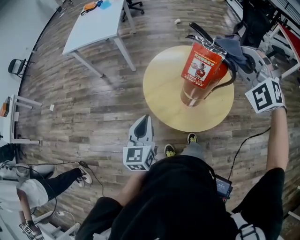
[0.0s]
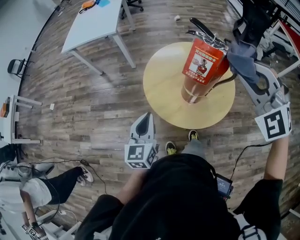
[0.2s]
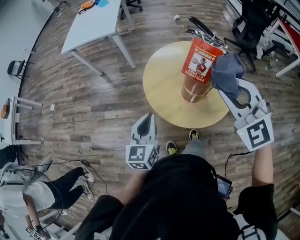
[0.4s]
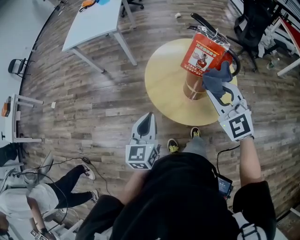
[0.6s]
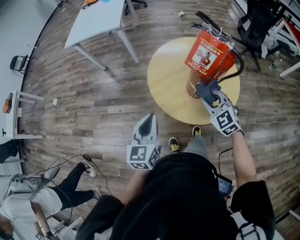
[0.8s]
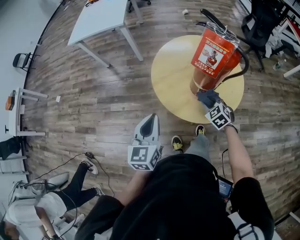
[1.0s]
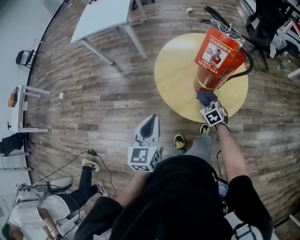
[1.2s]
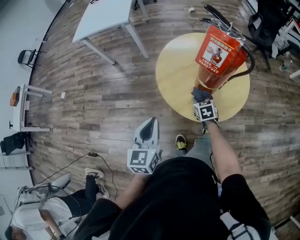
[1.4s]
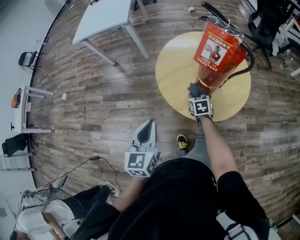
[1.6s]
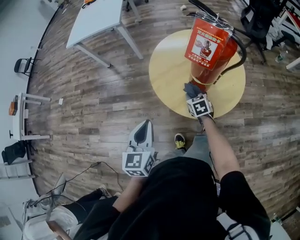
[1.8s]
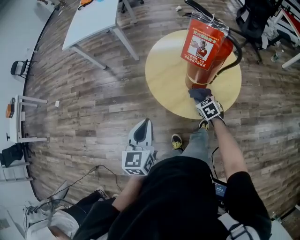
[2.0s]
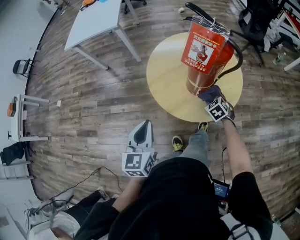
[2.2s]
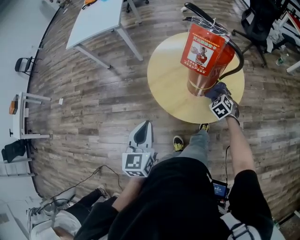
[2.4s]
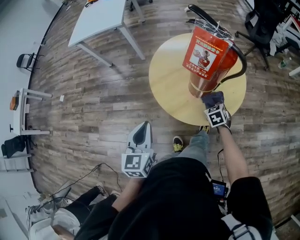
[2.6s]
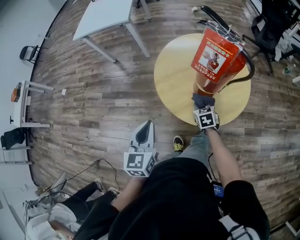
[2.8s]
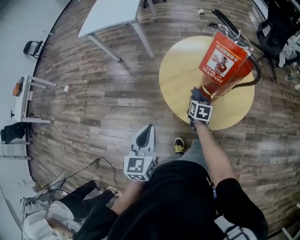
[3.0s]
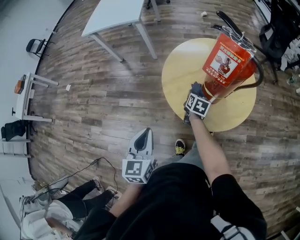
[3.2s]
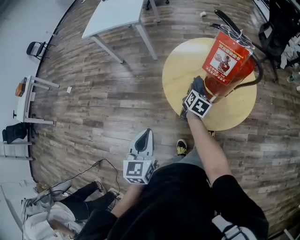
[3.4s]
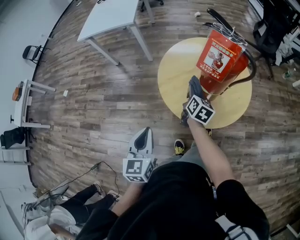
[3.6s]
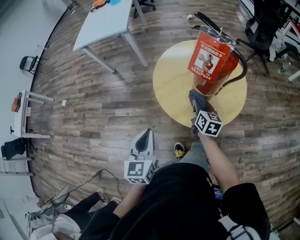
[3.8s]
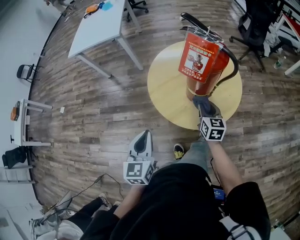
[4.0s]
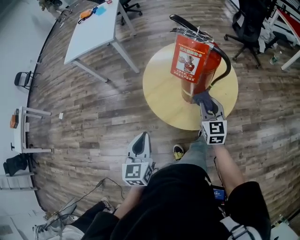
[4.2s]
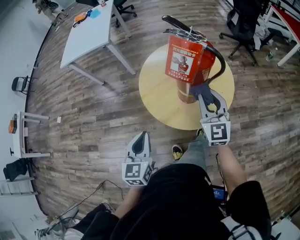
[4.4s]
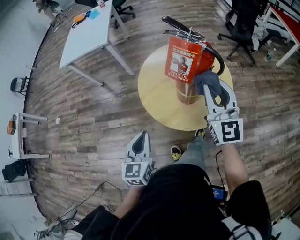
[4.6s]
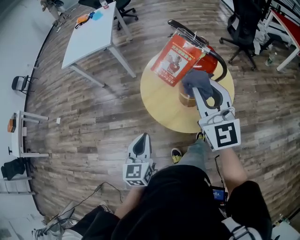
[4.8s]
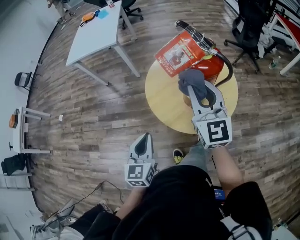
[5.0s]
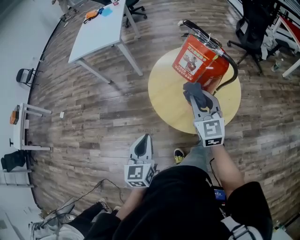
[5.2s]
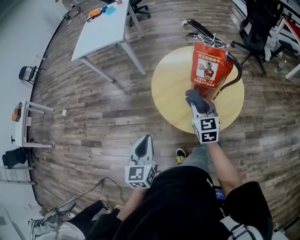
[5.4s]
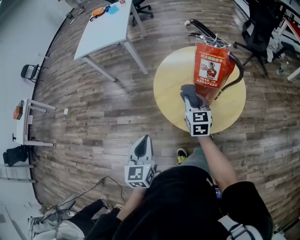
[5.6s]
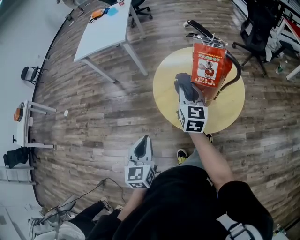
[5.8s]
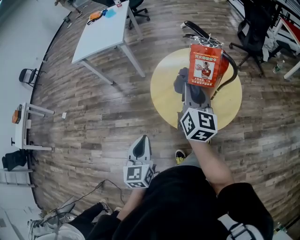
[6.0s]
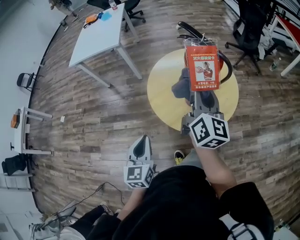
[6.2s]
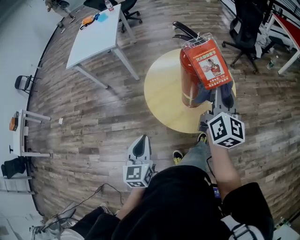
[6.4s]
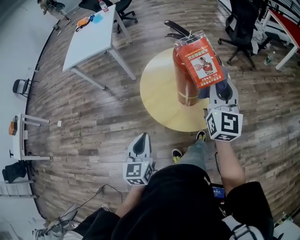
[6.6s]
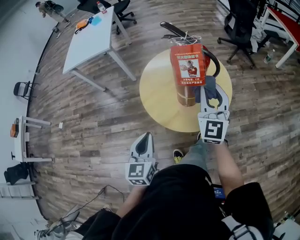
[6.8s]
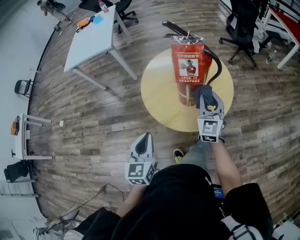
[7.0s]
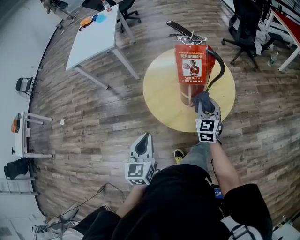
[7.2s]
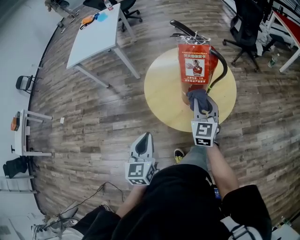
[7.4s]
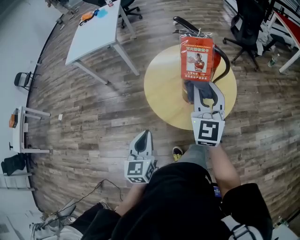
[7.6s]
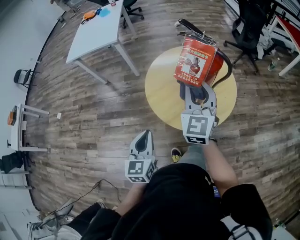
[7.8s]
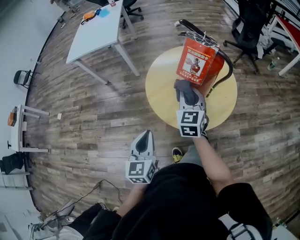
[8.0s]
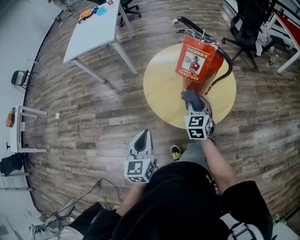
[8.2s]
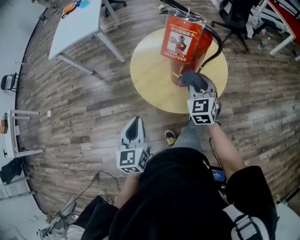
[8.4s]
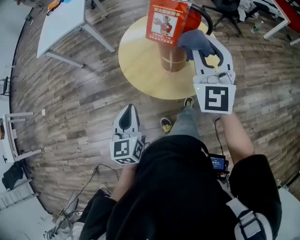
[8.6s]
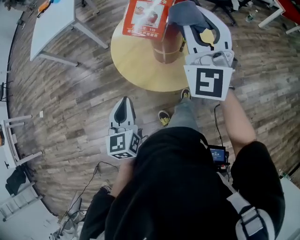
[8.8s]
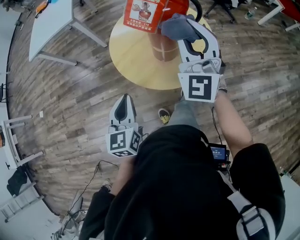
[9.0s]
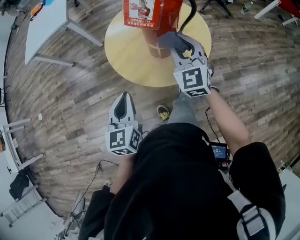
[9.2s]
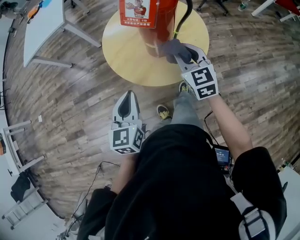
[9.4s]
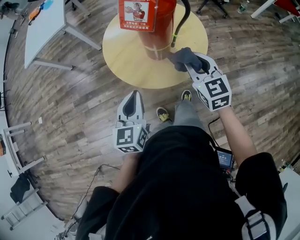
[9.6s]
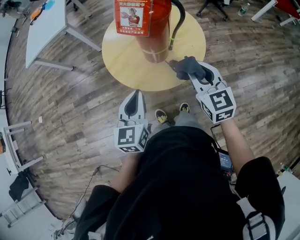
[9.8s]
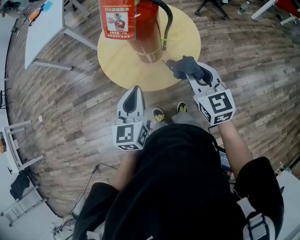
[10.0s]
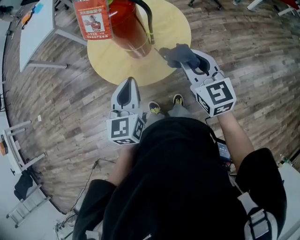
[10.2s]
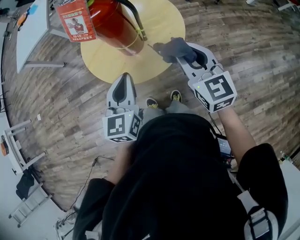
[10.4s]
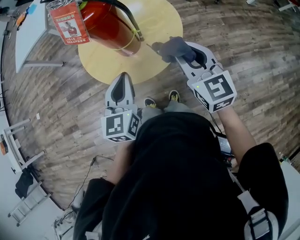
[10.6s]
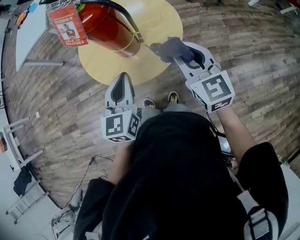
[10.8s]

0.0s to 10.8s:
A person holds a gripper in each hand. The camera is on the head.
0.0s to 1.6s: The left gripper shifts some 5 cm backward; the right gripper heads downward, covering roughly 40 cm, and twists approximately 80 degrees clockwise, seen from behind.
1.6s to 3.0s: The right gripper goes to the right and returns, roughly 15 cm each way.
3.0s to 4.6s: The right gripper shifts approximately 35 cm upward, and angles its fingers upward, by about 50 degrees.
4.6s to 6.2s: The right gripper moves up and down over some 20 cm, changing direction 2 times, and swivels some 40 degrees.
6.2s to 7.8s: The right gripper moves roughly 20 cm downward and comes back, and rotates around the line of its fingers by roughly 50 degrees, counterclockwise from behind.
7.8s to 9.2s: The right gripper swings up and down, some 25 cm each way, with 2 reversals.
9.2s to 10.8s: The left gripper heads to the right, covering some 20 cm. Meanwhile the right gripper travels to the right and backward by some 20 cm, and swivels roughly 20 degrees.

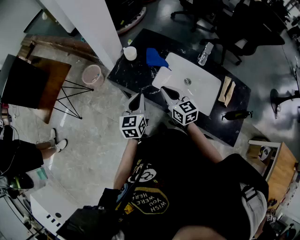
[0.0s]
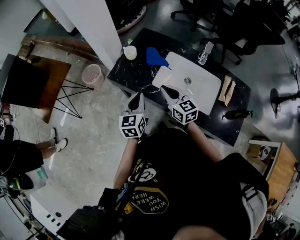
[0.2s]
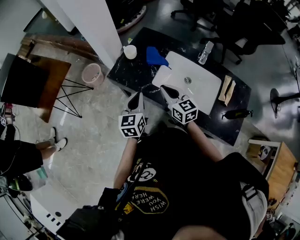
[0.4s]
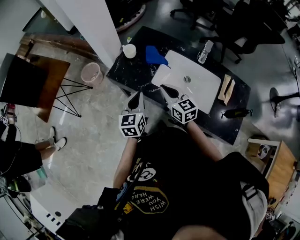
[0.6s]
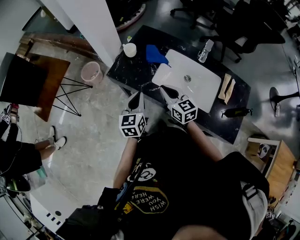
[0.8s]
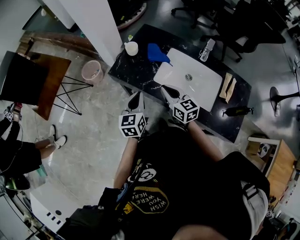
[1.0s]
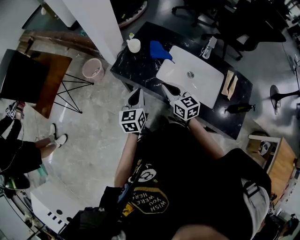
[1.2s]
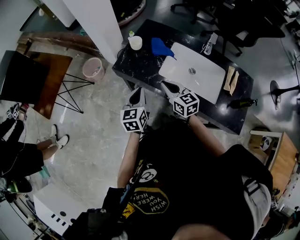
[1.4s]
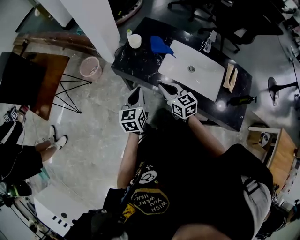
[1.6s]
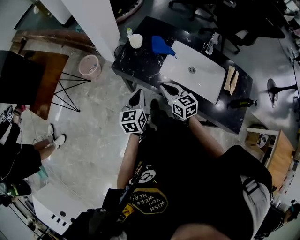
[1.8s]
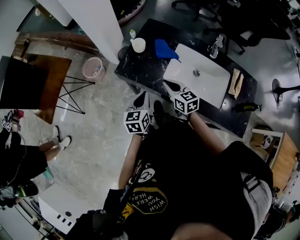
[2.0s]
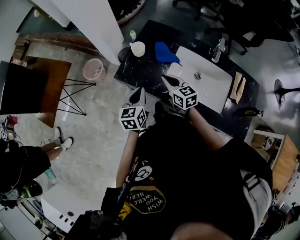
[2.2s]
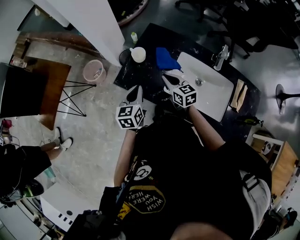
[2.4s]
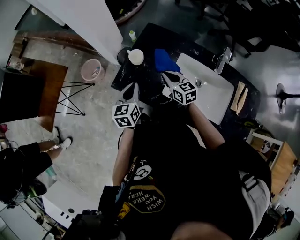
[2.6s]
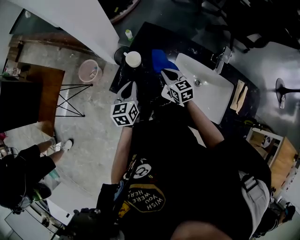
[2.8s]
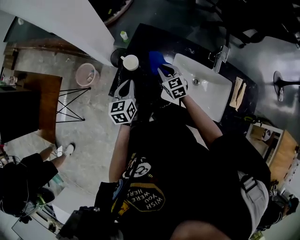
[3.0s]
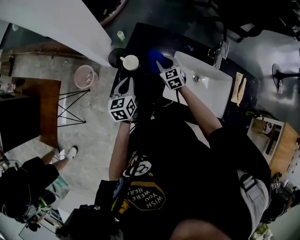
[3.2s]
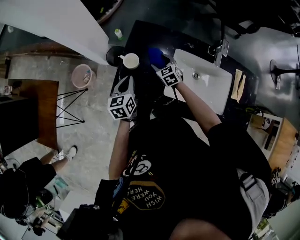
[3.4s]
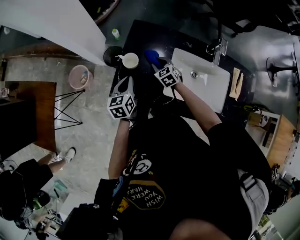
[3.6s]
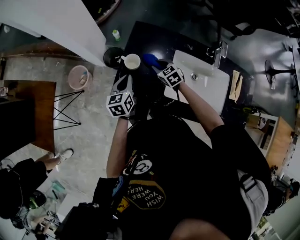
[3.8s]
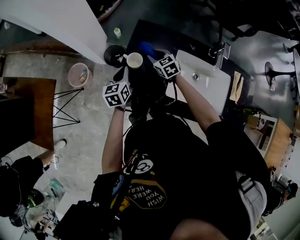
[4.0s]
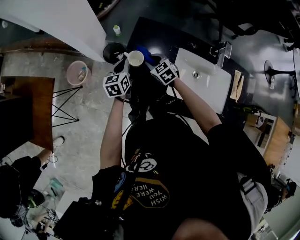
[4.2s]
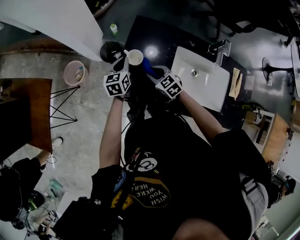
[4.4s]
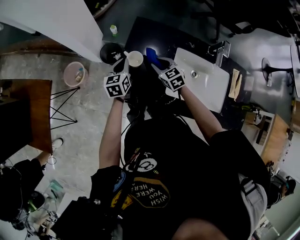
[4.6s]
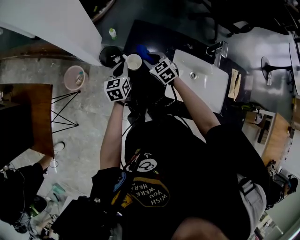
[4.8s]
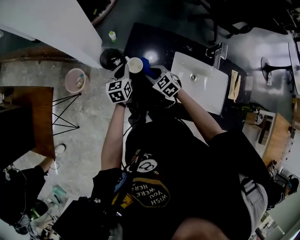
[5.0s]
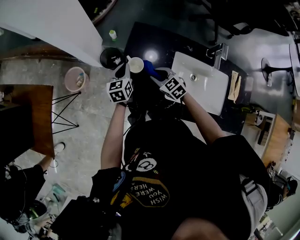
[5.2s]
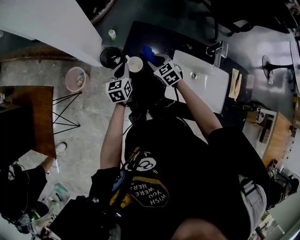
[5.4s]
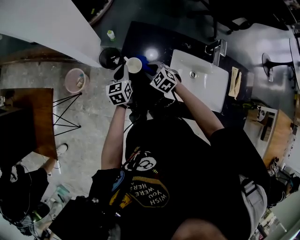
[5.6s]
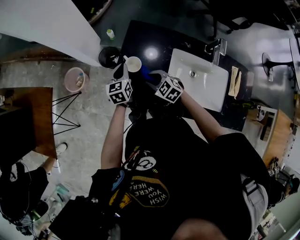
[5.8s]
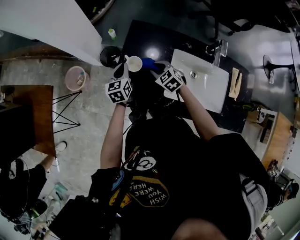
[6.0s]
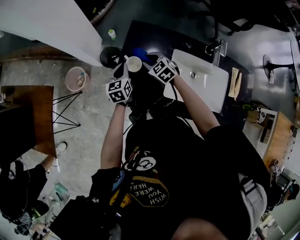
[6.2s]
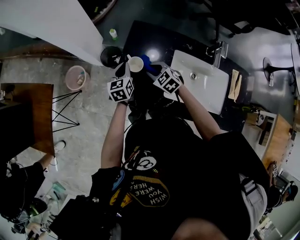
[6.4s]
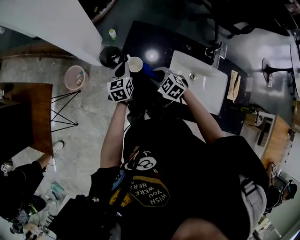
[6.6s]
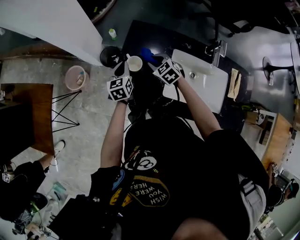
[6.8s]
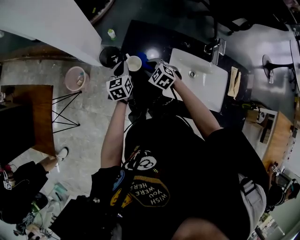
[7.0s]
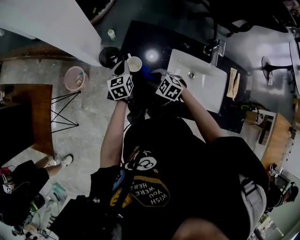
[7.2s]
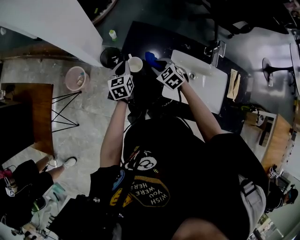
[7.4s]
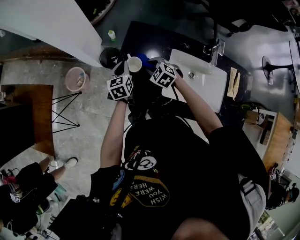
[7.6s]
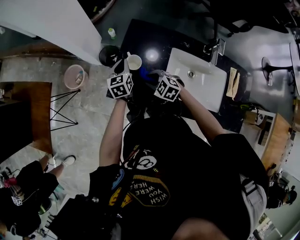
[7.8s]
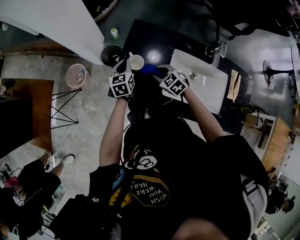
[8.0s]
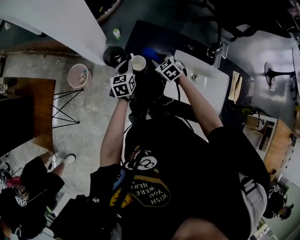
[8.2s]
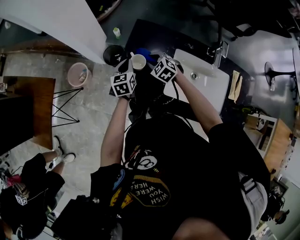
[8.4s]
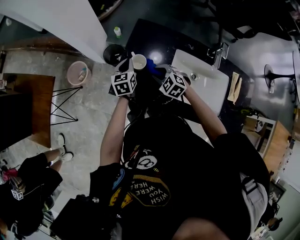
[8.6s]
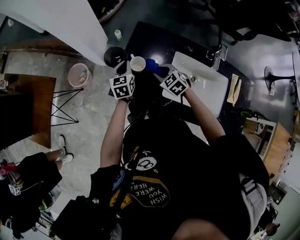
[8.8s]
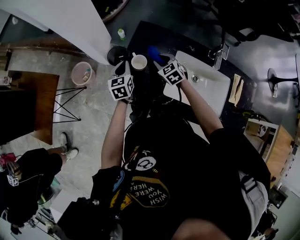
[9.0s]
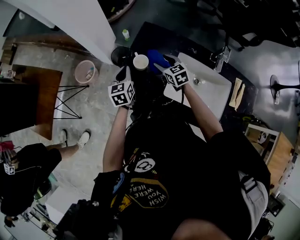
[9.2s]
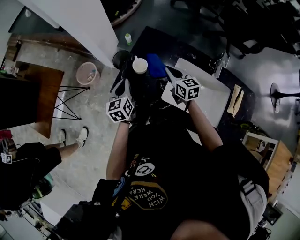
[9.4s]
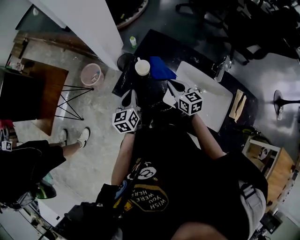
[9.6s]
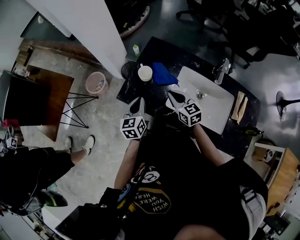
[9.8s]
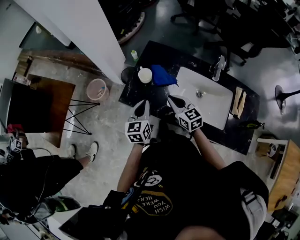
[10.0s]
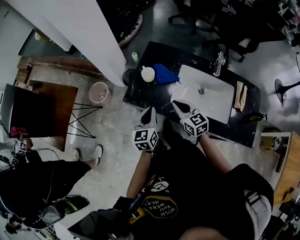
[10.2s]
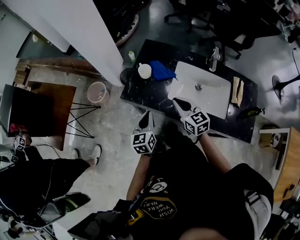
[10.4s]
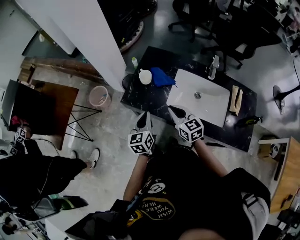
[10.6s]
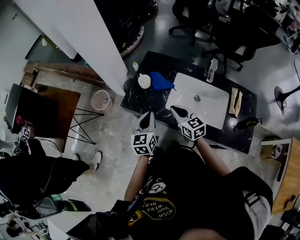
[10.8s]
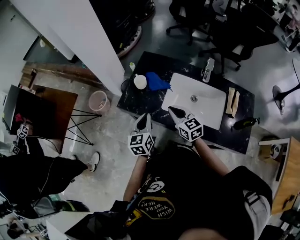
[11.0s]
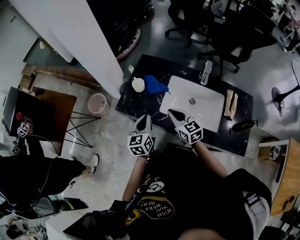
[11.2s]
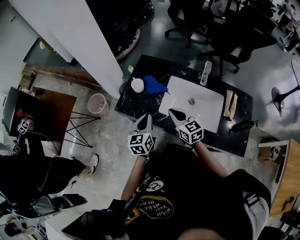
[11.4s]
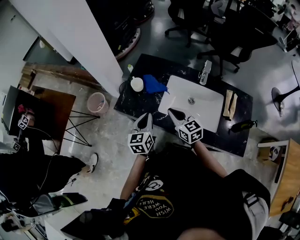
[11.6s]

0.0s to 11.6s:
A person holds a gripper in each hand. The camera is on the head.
0.0s to 1.4s: Both grippers move to the left, about 5 cm.
1.4s to 2.8s: The right gripper is displaced forward and downward by about 25 cm. Meanwhile the left gripper goes about 20 cm forward.
2.8s to 4.4s: The left gripper goes about 15 cm forward and downward. Meanwhile the right gripper heads to the left and downward, covering approximately 10 cm, goes forward and returns, approximately 10 cm each way, rotates some 20 degrees, and opens up.
4.4s to 5.8s: The right gripper swings forward and backward, about 10 cm each way, with 3 reversals.
5.8s to 7.2s: The right gripper swings forward and backward, approximately 10 cm each way, with 3 reversals.
7.2s to 8.8s: The right gripper swings forward and backward, some 10 cm each way, with 3 reversals.
8.8s to 10.2s: The left gripper travels backward by approximately 25 cm; the right gripper goes roughly 20 cm backward and upward, swivels about 40 degrees, and closes its fingers.
10.2s to 11.6s: Both grippers travel together to the right, roughly 5 cm.

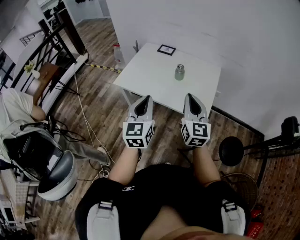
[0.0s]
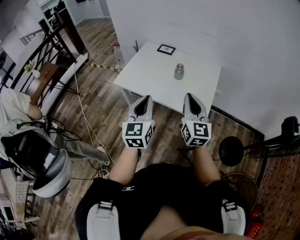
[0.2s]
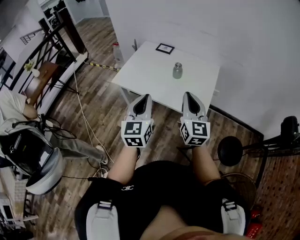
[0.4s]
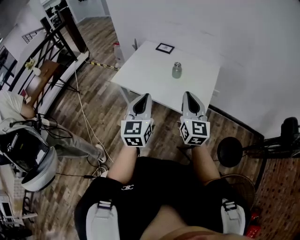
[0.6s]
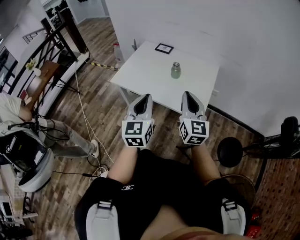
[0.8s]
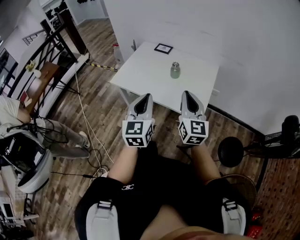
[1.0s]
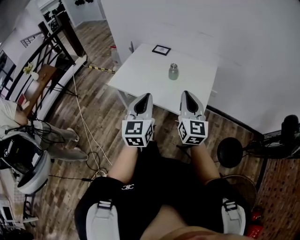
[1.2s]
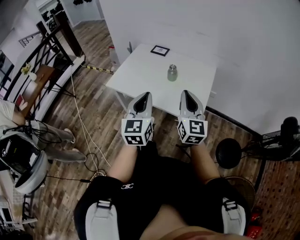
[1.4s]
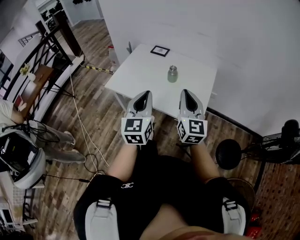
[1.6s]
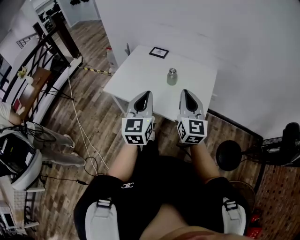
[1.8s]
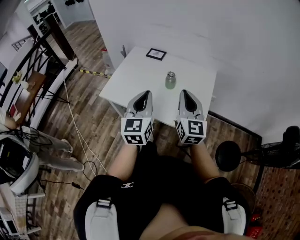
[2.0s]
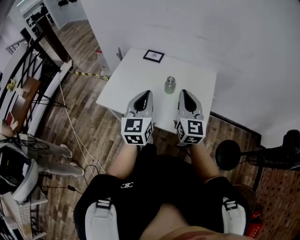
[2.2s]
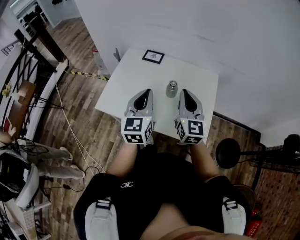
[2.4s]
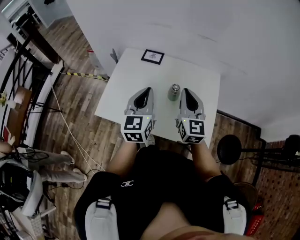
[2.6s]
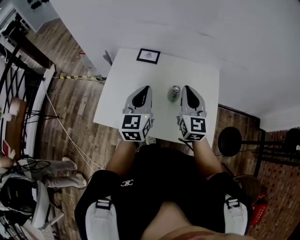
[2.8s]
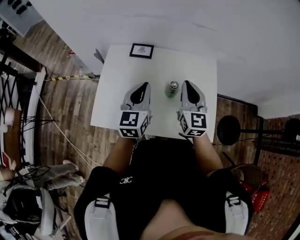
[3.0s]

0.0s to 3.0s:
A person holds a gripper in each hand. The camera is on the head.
0.0s to 1.6s: Both grippers move forward, roughly 10 cm.
1.6s to 3.0s: The two grippers go approximately 30 cm forward. The right gripper swivels approximately 20 degrees; the left gripper turns by roughly 20 degrees.
